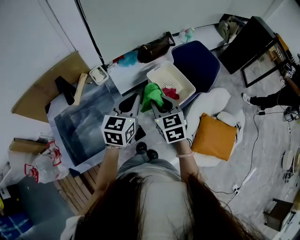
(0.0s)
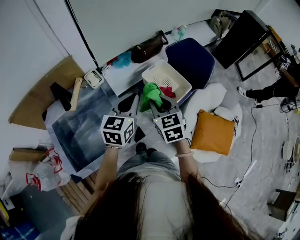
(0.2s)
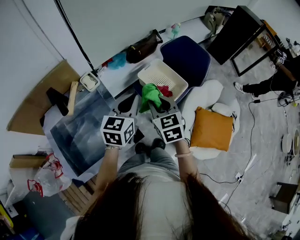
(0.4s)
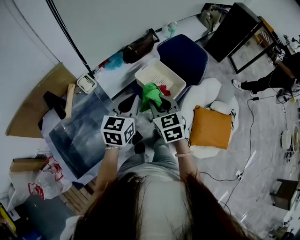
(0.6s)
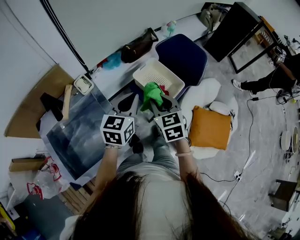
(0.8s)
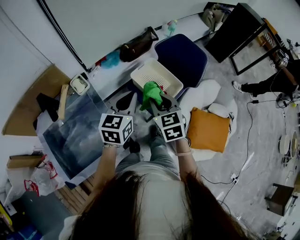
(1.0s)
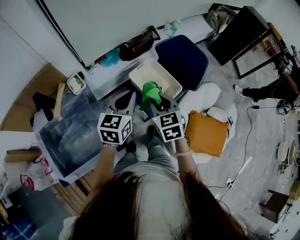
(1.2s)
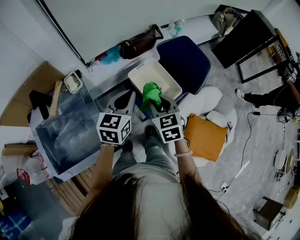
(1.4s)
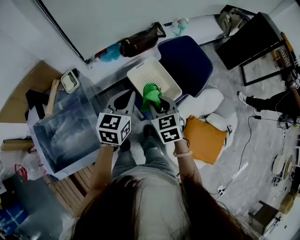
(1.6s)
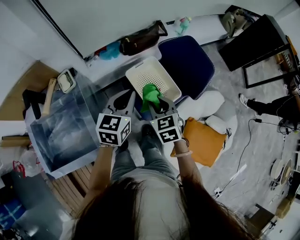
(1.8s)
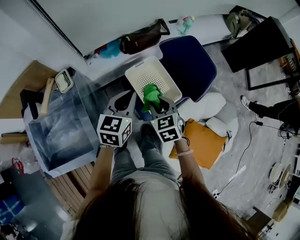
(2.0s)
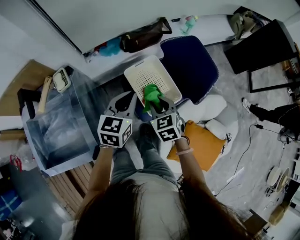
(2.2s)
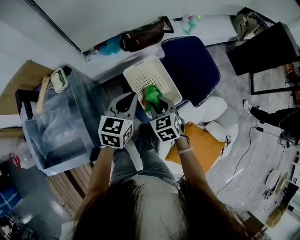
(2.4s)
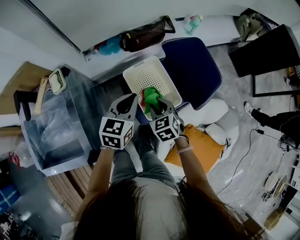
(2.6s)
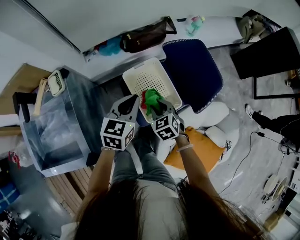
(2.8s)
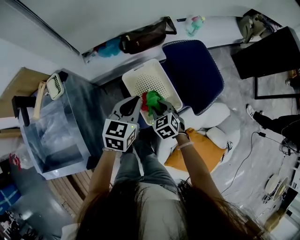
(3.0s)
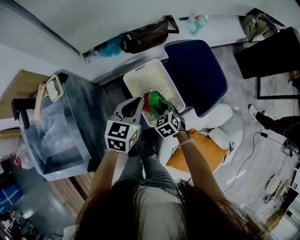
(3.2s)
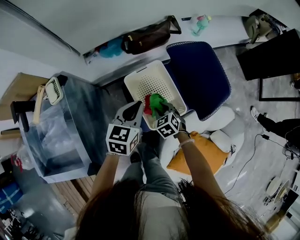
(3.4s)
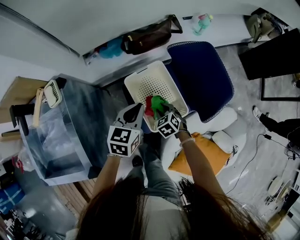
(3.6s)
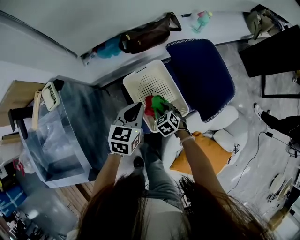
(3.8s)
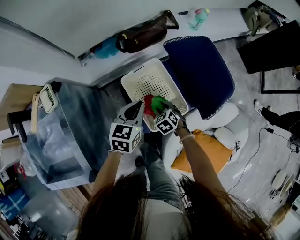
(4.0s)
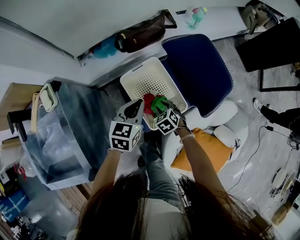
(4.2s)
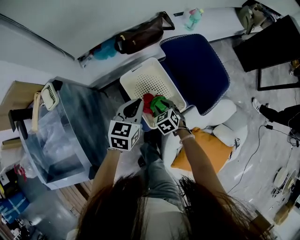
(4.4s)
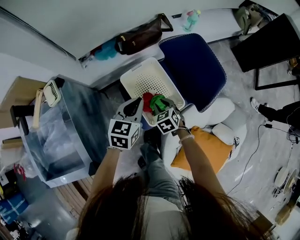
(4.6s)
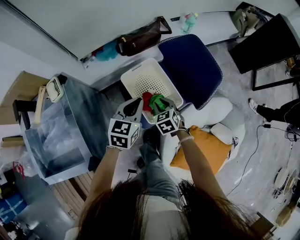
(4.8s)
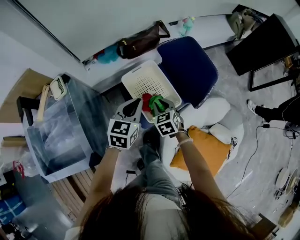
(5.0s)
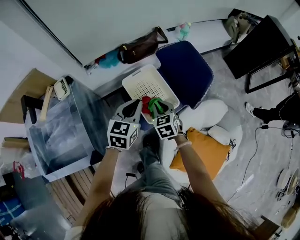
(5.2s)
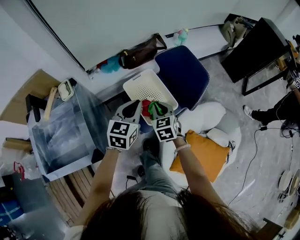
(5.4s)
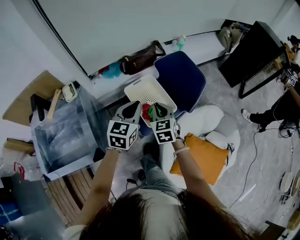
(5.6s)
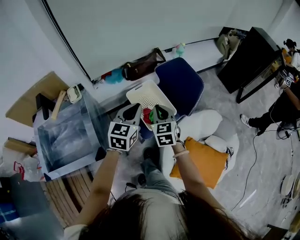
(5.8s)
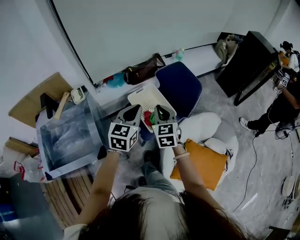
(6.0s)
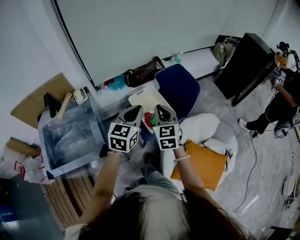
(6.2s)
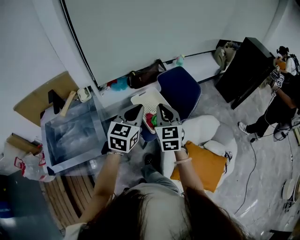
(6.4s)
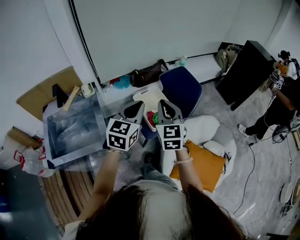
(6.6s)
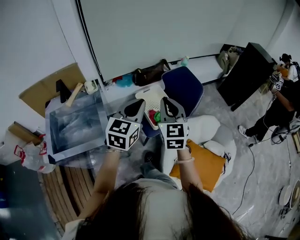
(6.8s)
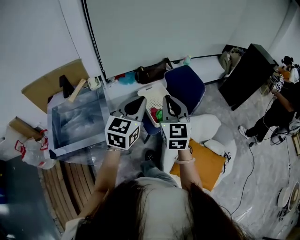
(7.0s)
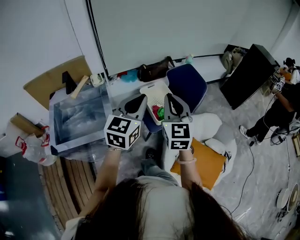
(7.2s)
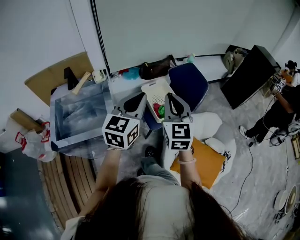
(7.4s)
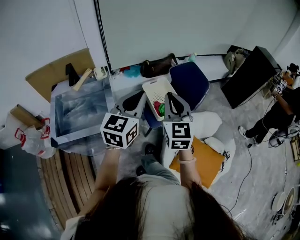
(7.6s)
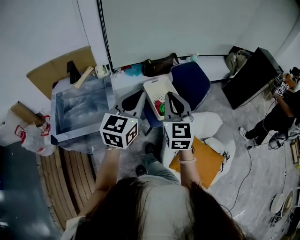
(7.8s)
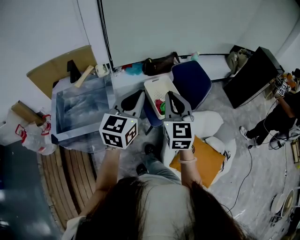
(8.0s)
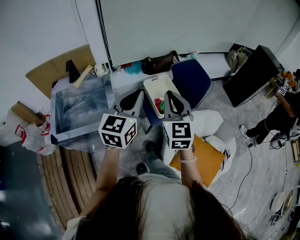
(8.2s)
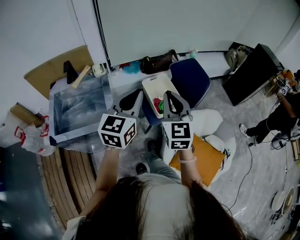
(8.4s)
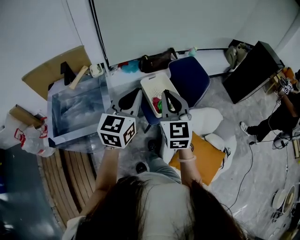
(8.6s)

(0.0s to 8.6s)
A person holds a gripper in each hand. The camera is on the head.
0.0s - 1.4s: The left gripper heads forward and to the right, covering about 15 cm, while the right gripper moves to the right and forward, some 15 cm.
1.4s - 2.8s: The right gripper is displaced downward and forward by some 20 cm, and changes its angle by about 20 degrees, while the left gripper goes approximately 15 cm downward, forward and to the right.
2.8s - 4.4s: The two grippers go roughly 10 cm downward.
4.4s - 5.8s: The left gripper shifts roughly 20 cm upward and backward, while the right gripper is displaced upward by roughly 30 cm, tilts its fingers roughly 30 degrees upward, and closes its fingers.
5.8s - 7.2s: The left gripper goes approximately 25 cm backward and upward. The right gripper is displaced upward and backward by approximately 25 cm, and rotates approximately 20 degrees.
7.2s - 8.6s: The grippers move only a little.

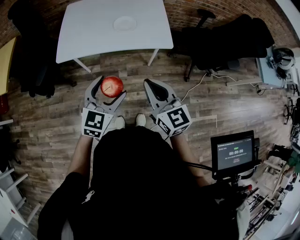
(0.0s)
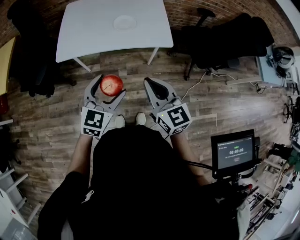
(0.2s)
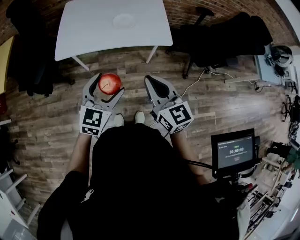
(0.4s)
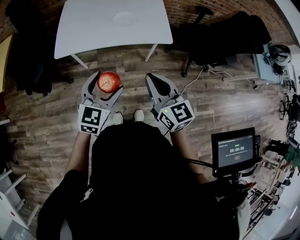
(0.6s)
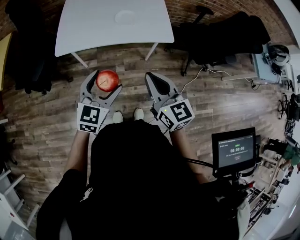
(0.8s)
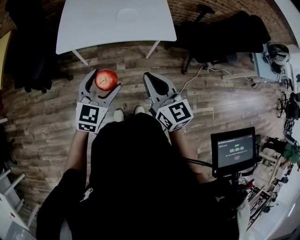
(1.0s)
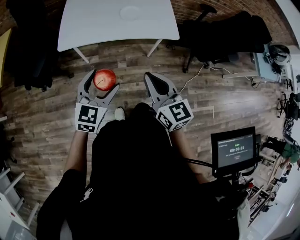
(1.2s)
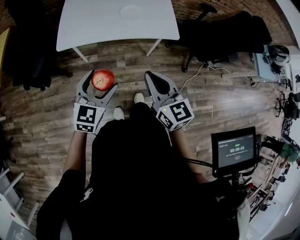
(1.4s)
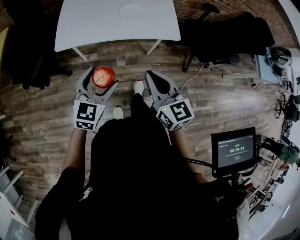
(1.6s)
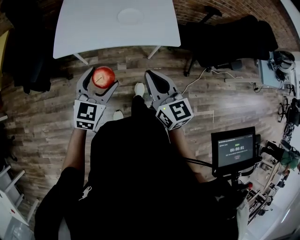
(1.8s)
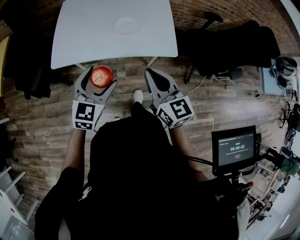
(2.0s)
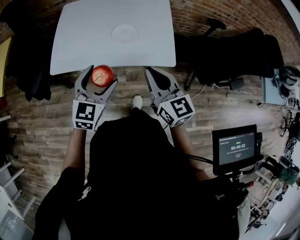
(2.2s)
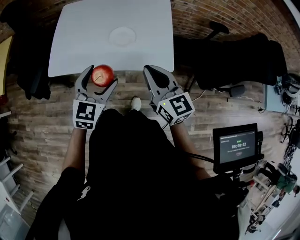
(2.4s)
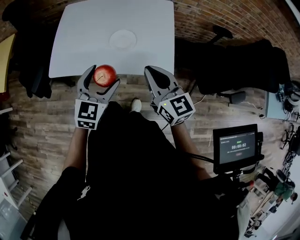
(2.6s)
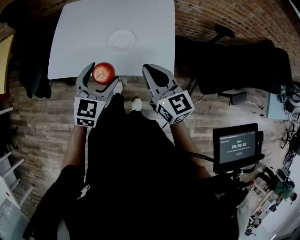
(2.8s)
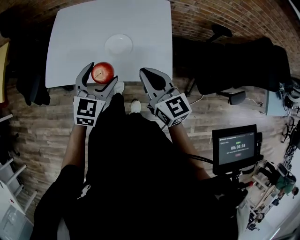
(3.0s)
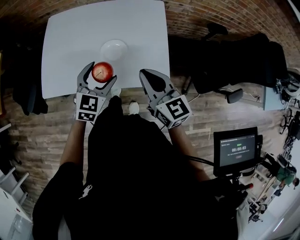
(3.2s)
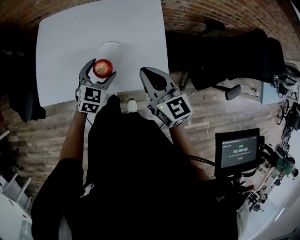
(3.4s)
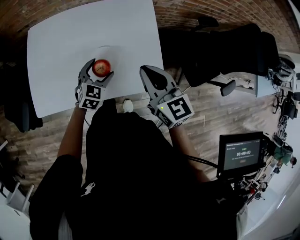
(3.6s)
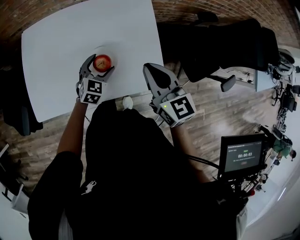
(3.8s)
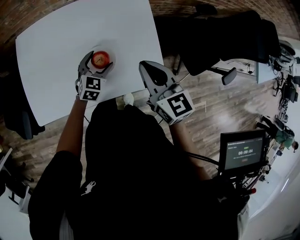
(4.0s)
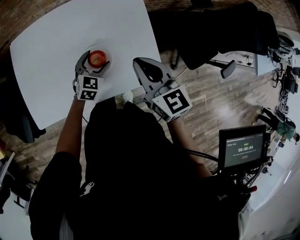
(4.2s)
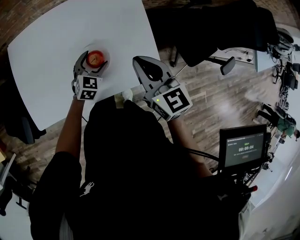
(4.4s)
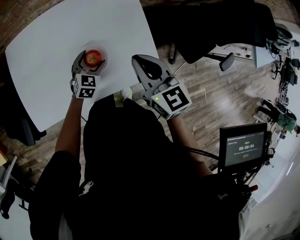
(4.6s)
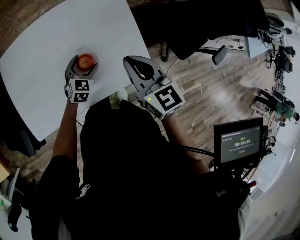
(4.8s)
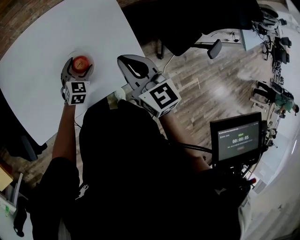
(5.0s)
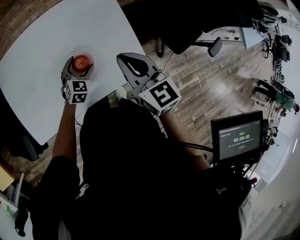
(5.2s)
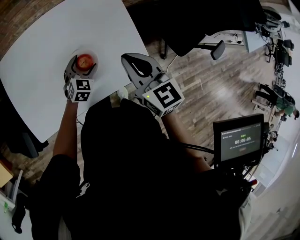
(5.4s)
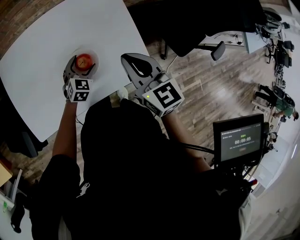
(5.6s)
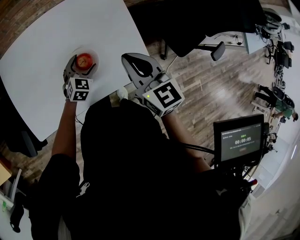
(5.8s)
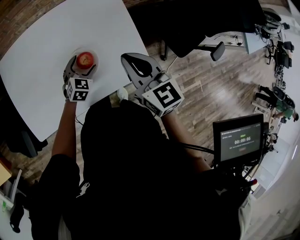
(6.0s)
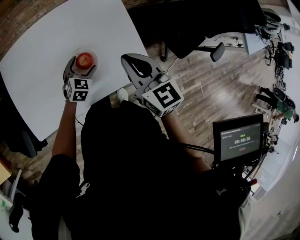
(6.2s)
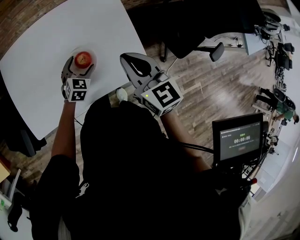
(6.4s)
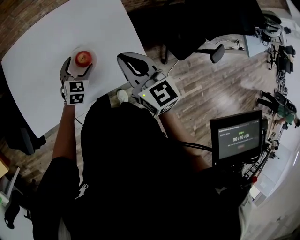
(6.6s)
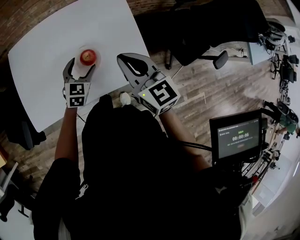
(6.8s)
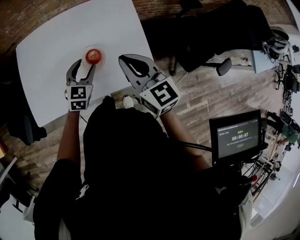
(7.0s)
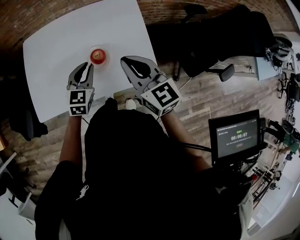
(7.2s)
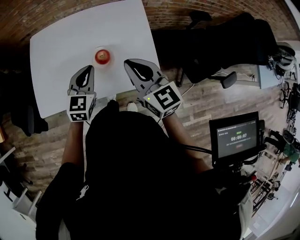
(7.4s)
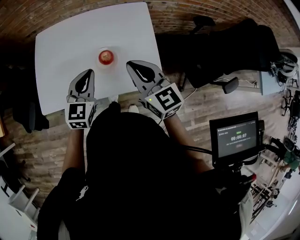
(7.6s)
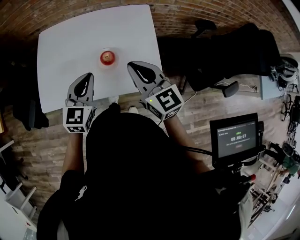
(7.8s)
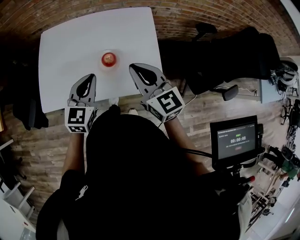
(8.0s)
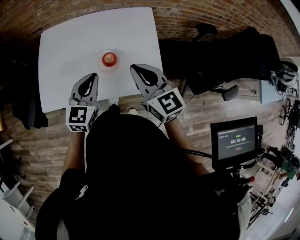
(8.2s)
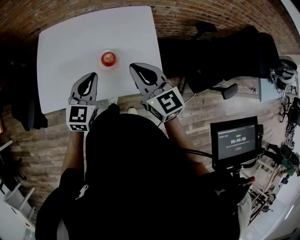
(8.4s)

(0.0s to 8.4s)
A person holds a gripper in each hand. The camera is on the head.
0.0s - 1.4s: The right gripper heads to the left, covering about 5 cm, while the left gripper goes approximately 10 cm to the left.
1.4s - 2.8s: The two grippers go some 25 cm forward and to the right.
2.8s - 4.2s: The left gripper moves forward and downward, some 30 cm, and changes its angle by roughly 20 degrees. The right gripper is displaced forward by roughly 15 cm.
4.2s - 5.6s: The grippers move only a little.
5.6s - 7.0s: The left gripper moves upward, about 10 cm, and closes.
7.0s - 8.4s: The left gripper shifts some 15 cm upward and backward, and closes its fingers.

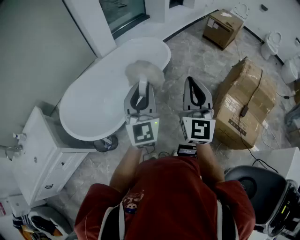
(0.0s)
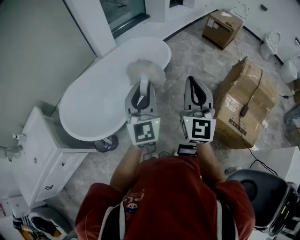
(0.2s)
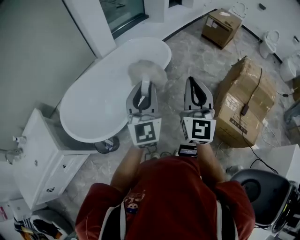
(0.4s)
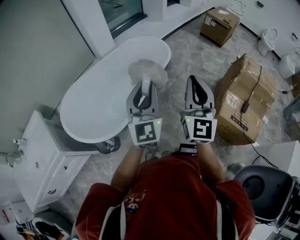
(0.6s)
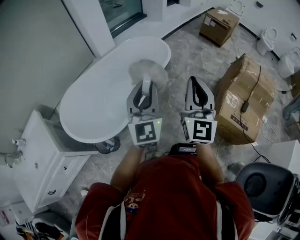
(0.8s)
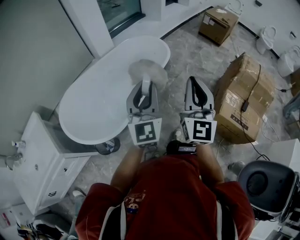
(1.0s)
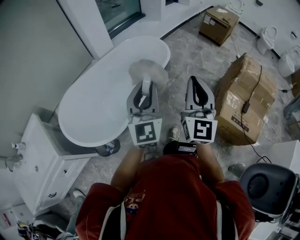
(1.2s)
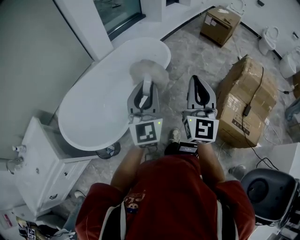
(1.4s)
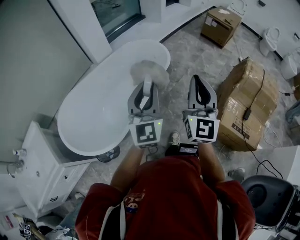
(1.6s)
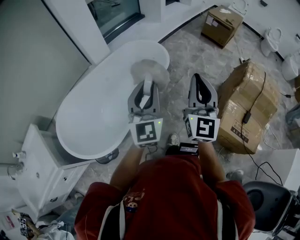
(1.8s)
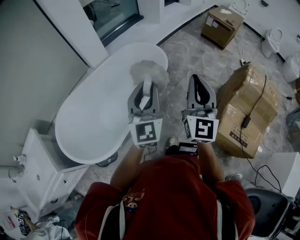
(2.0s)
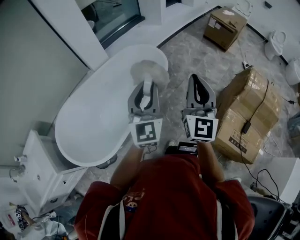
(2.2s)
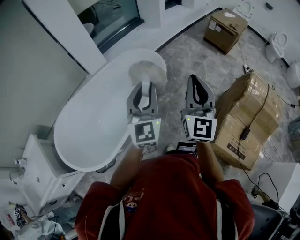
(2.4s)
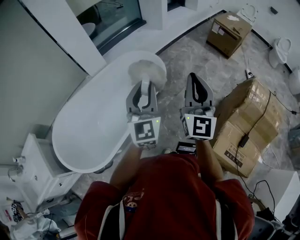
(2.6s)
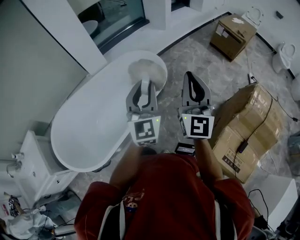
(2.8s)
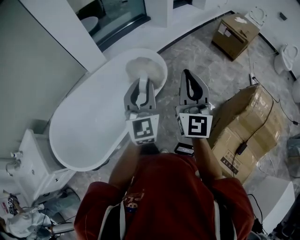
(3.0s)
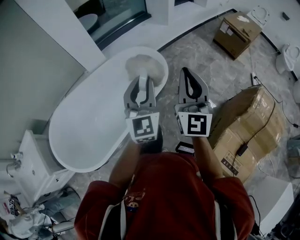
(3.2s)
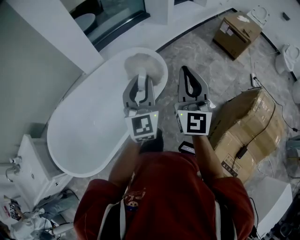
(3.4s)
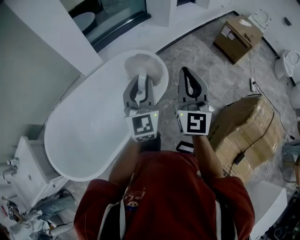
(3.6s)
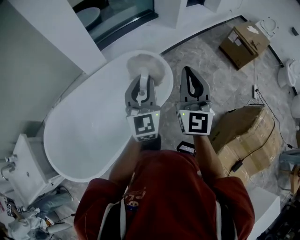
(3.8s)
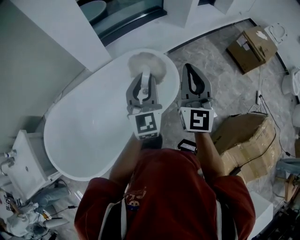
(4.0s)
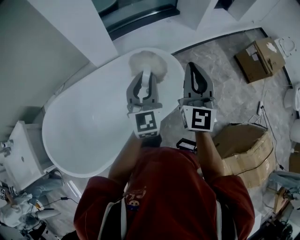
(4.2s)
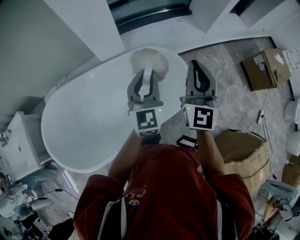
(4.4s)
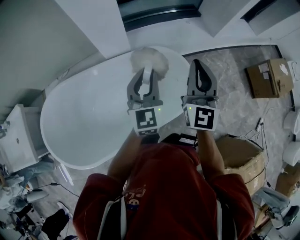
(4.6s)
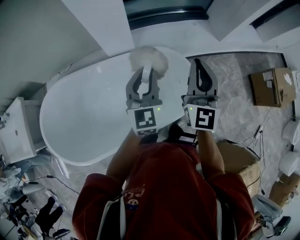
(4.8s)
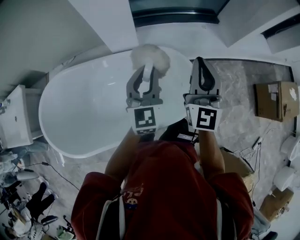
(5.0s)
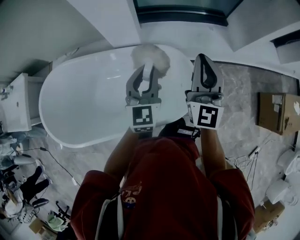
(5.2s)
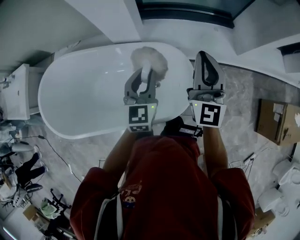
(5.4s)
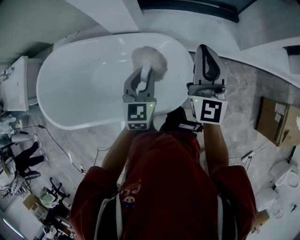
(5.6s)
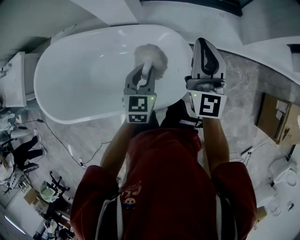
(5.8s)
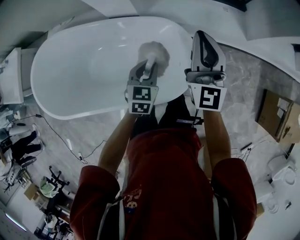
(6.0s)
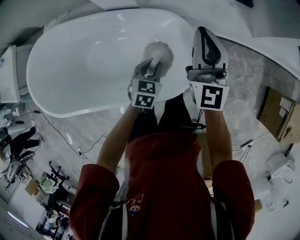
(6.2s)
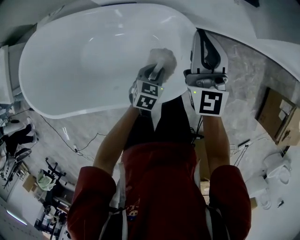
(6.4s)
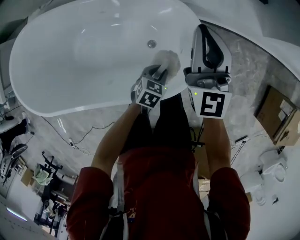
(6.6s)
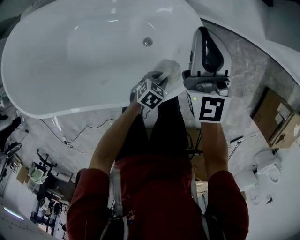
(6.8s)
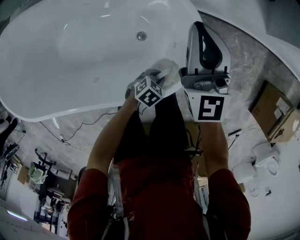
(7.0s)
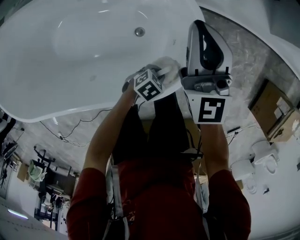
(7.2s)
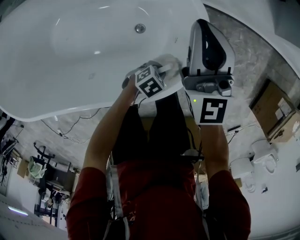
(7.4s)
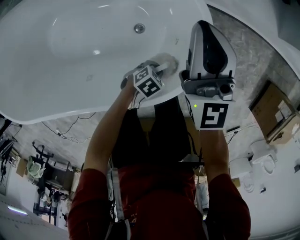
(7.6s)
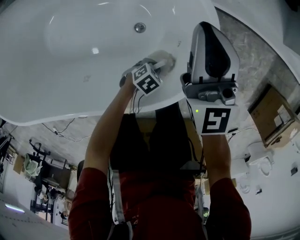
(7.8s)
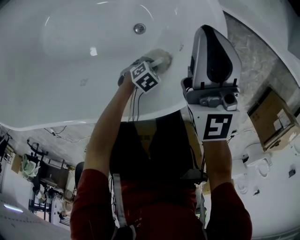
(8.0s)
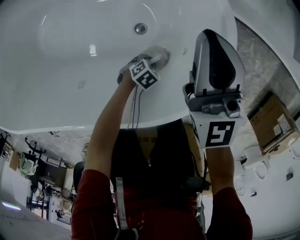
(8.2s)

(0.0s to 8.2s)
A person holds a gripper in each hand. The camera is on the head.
0.0s - 1.6s: The two grippers go approximately 10 cm forward.
1.6s - 3.2s: The two grippers go about 30 cm forward.
3.2s - 5.0s: The right gripper shifts by some 50 cm, and changes its angle by roughly 30 degrees. The left gripper ends up approximately 40 cm from where it was, and swivels about 30 degrees.
5.0s - 6.6s: The left gripper shifts roughly 40 cm downward, and angles its fingers downward, by about 50 degrees; the right gripper heads downward and forward, covering some 25 cm, and rotates roughly 20 degrees.
6.6s - 8.2s: Both grippers travel together downward, roughly 30 cm. The left gripper rotates about 30 degrees.
